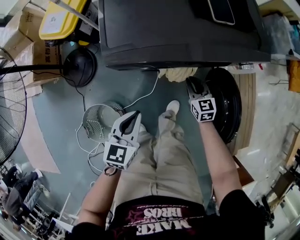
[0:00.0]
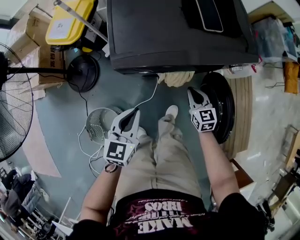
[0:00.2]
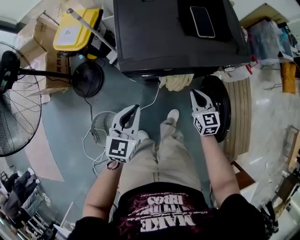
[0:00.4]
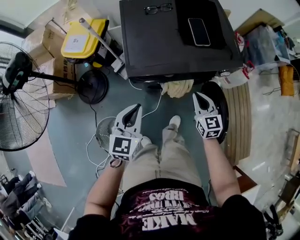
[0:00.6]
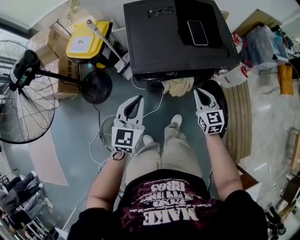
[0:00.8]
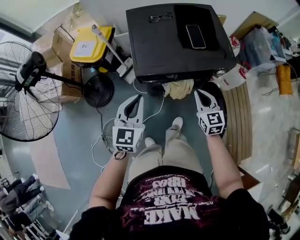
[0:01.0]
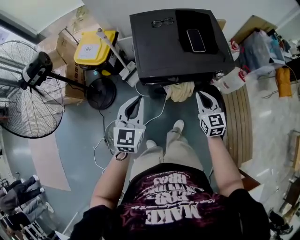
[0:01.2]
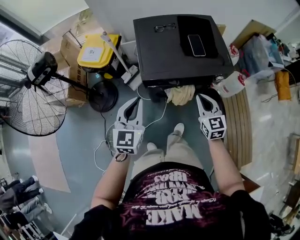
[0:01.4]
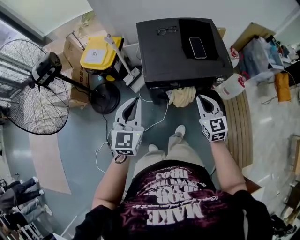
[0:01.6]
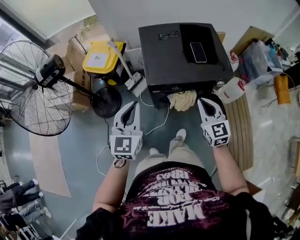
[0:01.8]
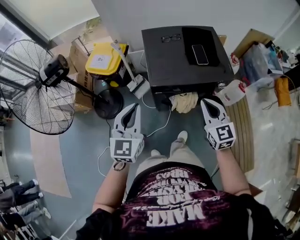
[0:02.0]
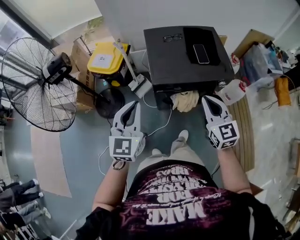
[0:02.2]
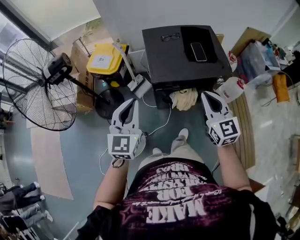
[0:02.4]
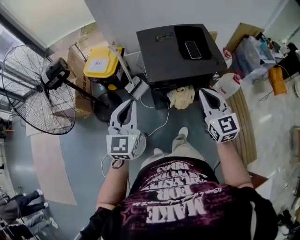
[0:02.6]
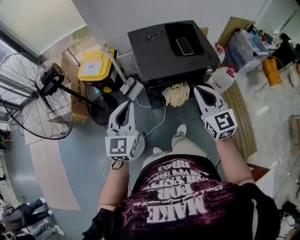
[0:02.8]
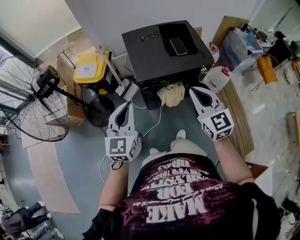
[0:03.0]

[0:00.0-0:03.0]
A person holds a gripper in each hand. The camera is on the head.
0:00.0 to 0:01.6: The grippers both shift upward by approximately 35 cm. The left gripper swivels approximately 30 degrees.
0:01.6 to 0:03.0: The left gripper travels backward and upward by roughly 10 cm, while the right gripper heads upward and backward, covering some 20 cm.

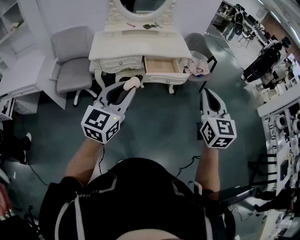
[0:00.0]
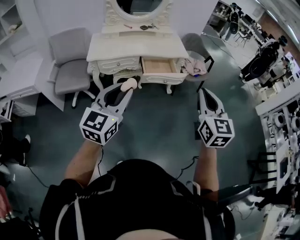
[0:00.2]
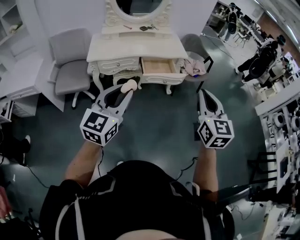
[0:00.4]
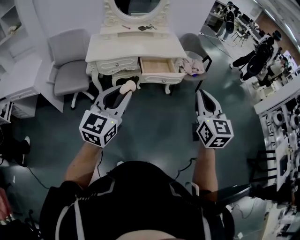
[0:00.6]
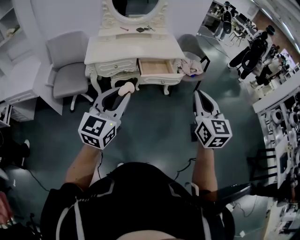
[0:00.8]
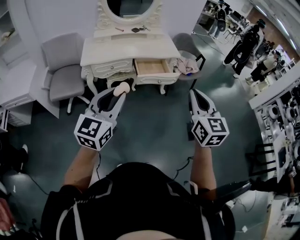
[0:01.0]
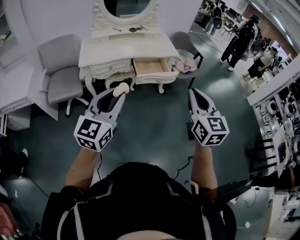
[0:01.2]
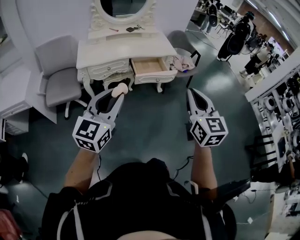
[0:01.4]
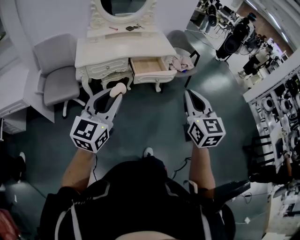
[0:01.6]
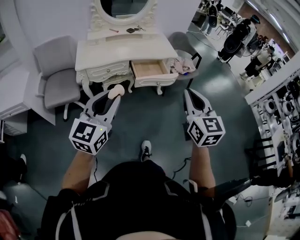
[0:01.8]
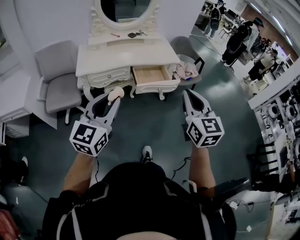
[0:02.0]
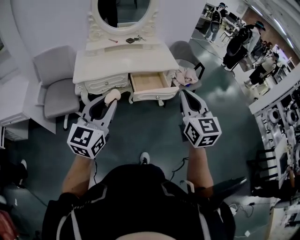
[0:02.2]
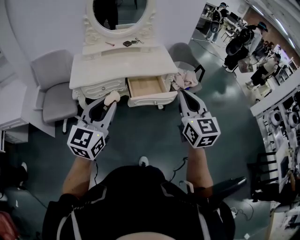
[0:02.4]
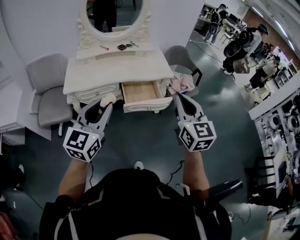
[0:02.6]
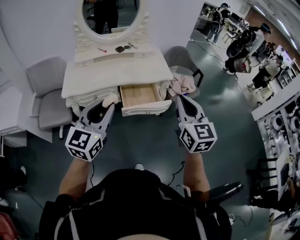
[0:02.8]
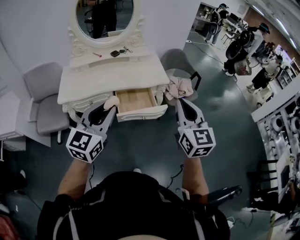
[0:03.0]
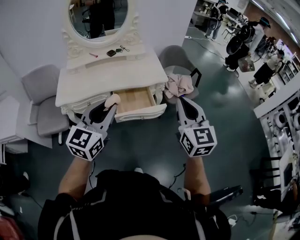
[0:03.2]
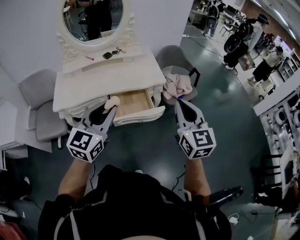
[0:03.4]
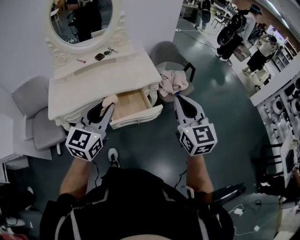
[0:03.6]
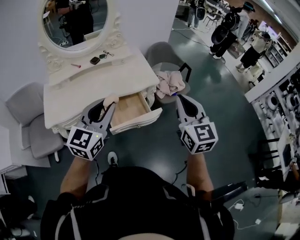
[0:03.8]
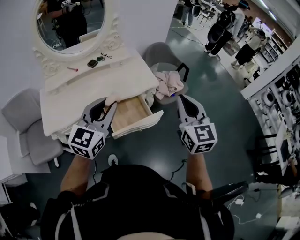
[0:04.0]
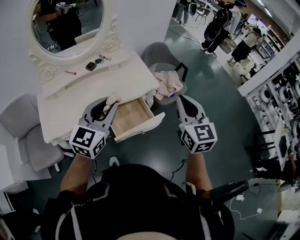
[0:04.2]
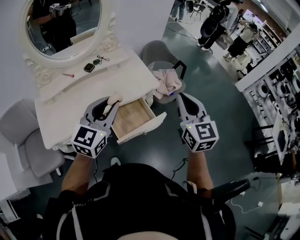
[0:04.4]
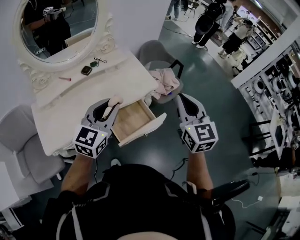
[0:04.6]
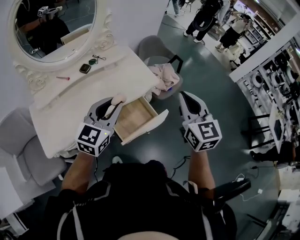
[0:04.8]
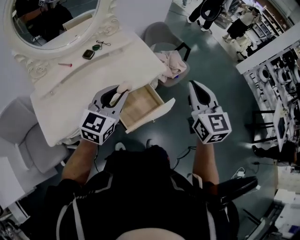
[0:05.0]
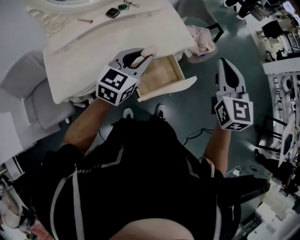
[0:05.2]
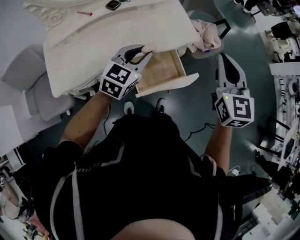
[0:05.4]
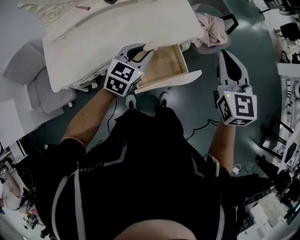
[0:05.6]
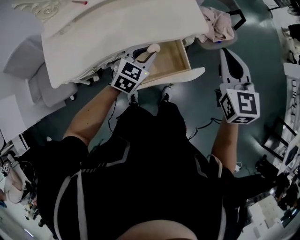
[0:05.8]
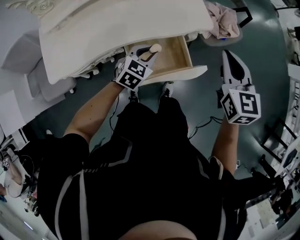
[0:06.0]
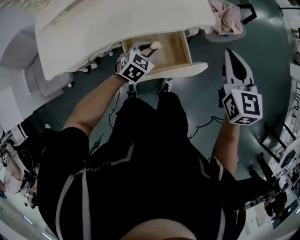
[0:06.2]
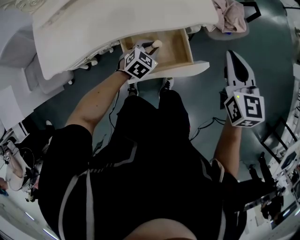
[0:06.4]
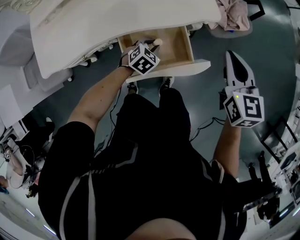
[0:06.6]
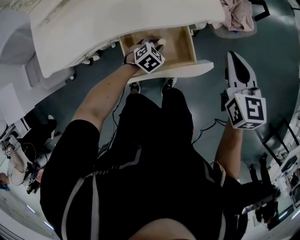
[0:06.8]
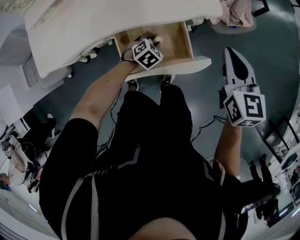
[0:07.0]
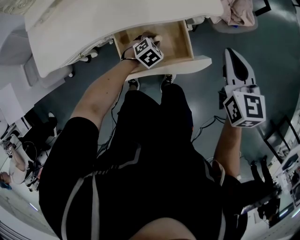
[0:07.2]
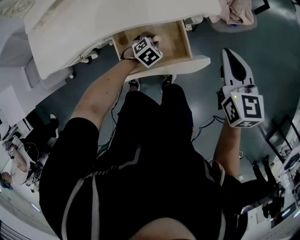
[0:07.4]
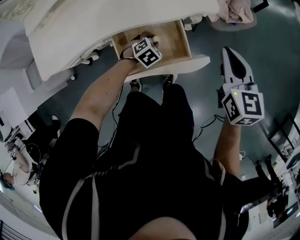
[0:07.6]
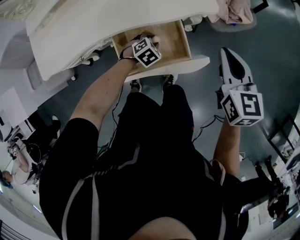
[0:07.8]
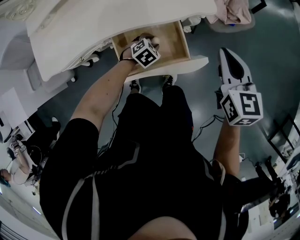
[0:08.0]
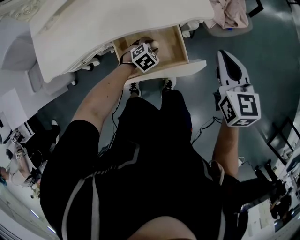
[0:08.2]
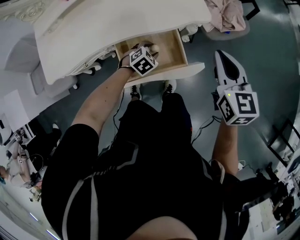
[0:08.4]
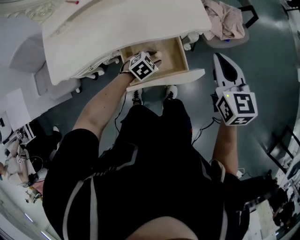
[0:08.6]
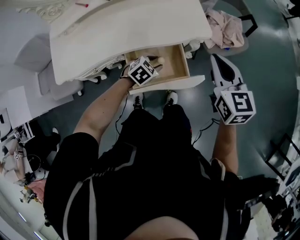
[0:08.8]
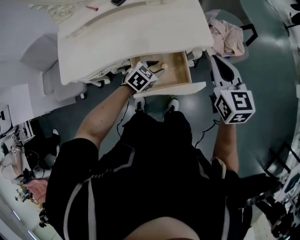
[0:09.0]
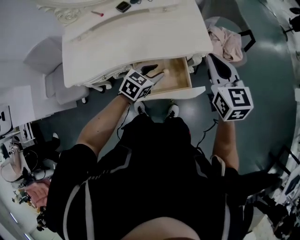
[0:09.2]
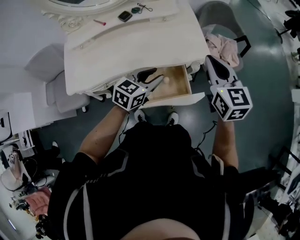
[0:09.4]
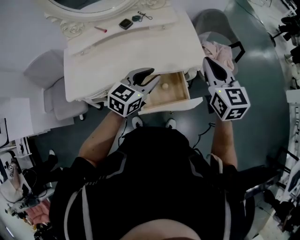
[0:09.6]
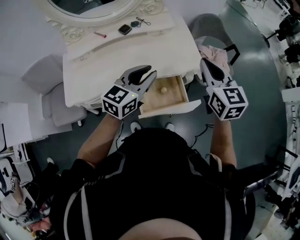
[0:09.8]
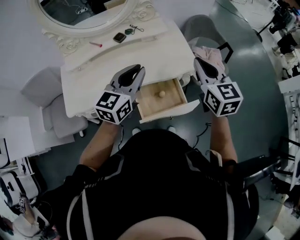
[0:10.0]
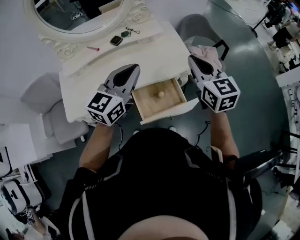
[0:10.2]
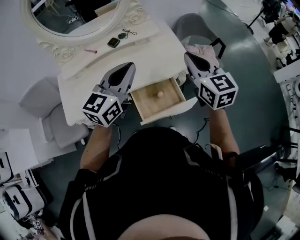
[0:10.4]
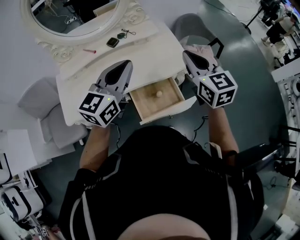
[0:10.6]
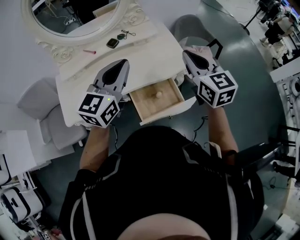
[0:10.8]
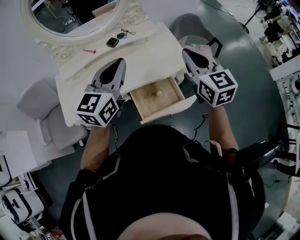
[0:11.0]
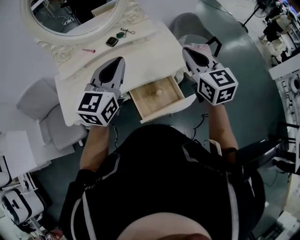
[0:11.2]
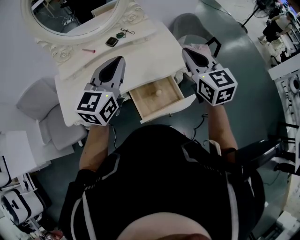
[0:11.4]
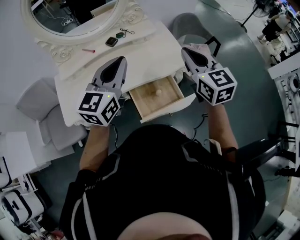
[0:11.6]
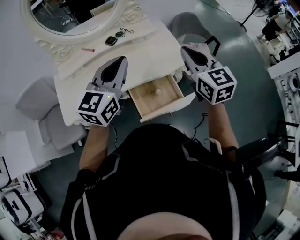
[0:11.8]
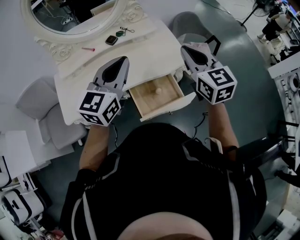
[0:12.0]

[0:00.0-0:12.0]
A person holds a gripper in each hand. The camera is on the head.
0:00.0 to 0:01.6: The grippers both shift to the left by some 5 cm.
0:01.6 to 0:03.0: The grippers both shift forward and to the right by roughly 30 cm.
0:03.0 to 0:04.4: The grippers both shift forward by roughly 20 cm.
0:04.4 to 0:06.0: The left gripper is displaced downward by approximately 30 cm, and angles its fingers downward, by some 40 degrees. Meanwhile the right gripper goes some 20 cm downward and forward, and turns by about 20 degrees.
0:06.0 to 0:07.6: The left gripper goes some 20 cm downward, and rotates roughly 30 degrees, while the right gripper heads downward, covering approximately 10 cm.
0:07.6 to 0:09.0: The left gripper goes roughly 15 cm upward, and turns by approximately 20 degrees; the right gripper moves upward, approximately 10 cm.
0:09.0 to 0:10.4: The right gripper goes approximately 15 cm upward and to the left, while the left gripper travels upward by about 35 cm, points its fingers approximately 50 degrees further upward, and closes up.
0:10.4 to 0:12.0: The grippers make only small movements.

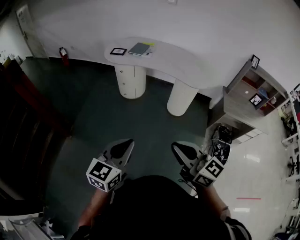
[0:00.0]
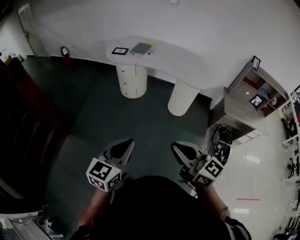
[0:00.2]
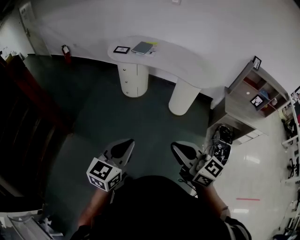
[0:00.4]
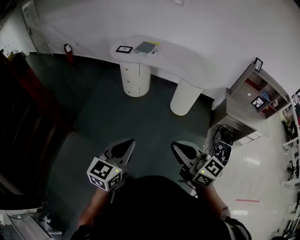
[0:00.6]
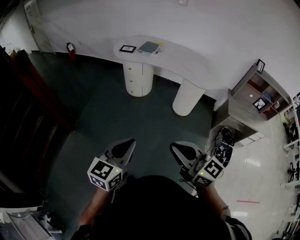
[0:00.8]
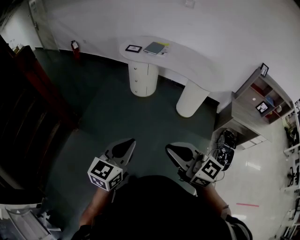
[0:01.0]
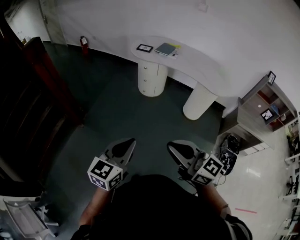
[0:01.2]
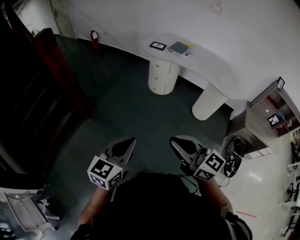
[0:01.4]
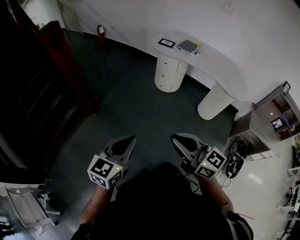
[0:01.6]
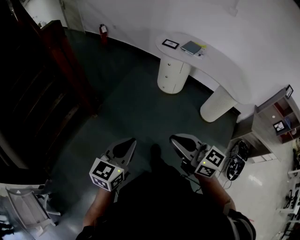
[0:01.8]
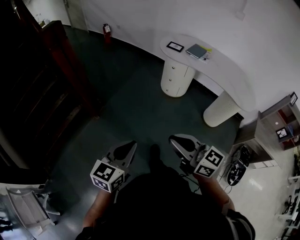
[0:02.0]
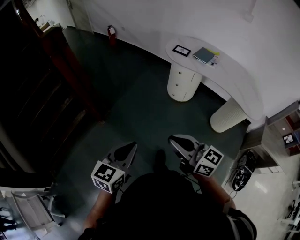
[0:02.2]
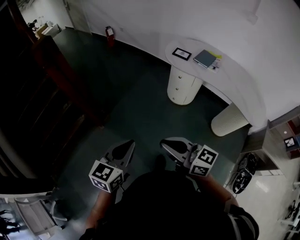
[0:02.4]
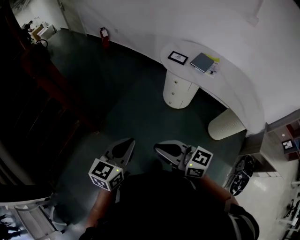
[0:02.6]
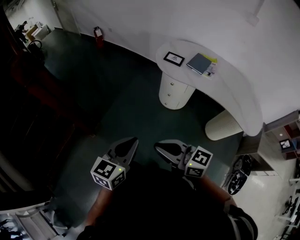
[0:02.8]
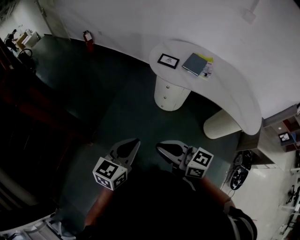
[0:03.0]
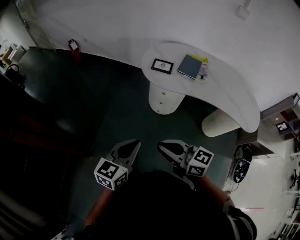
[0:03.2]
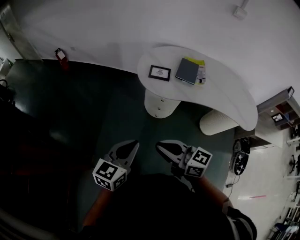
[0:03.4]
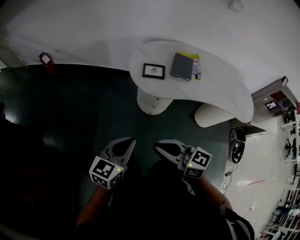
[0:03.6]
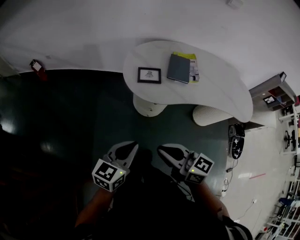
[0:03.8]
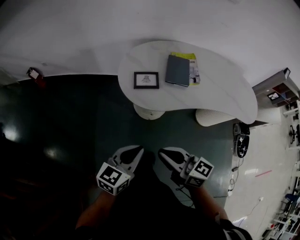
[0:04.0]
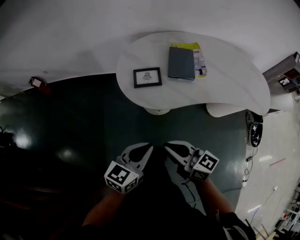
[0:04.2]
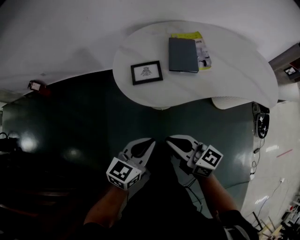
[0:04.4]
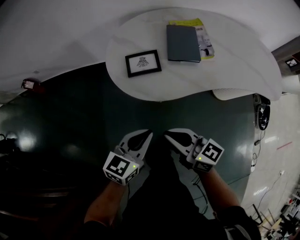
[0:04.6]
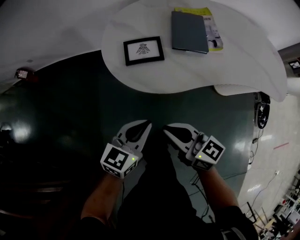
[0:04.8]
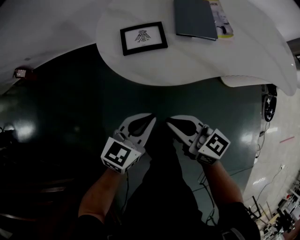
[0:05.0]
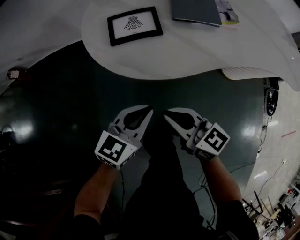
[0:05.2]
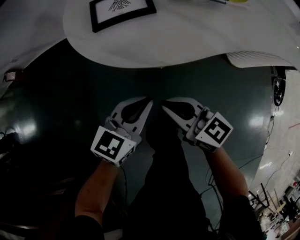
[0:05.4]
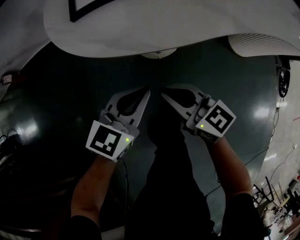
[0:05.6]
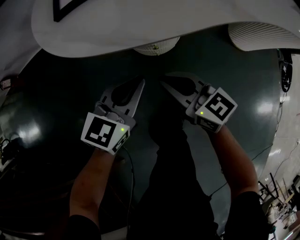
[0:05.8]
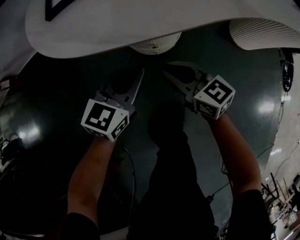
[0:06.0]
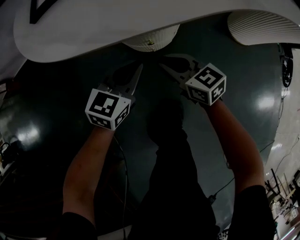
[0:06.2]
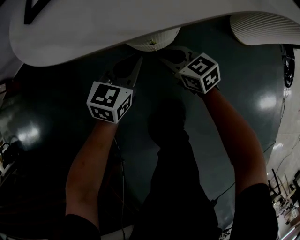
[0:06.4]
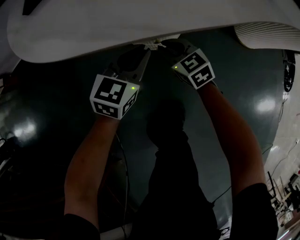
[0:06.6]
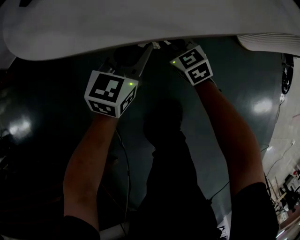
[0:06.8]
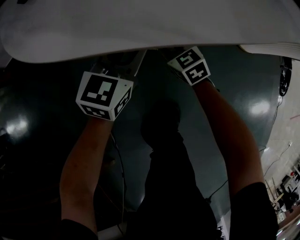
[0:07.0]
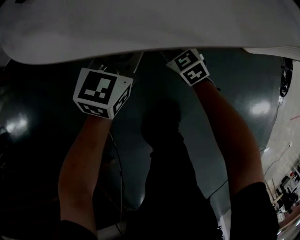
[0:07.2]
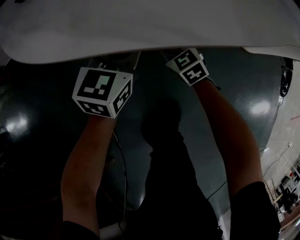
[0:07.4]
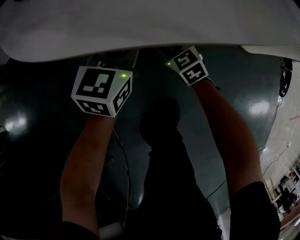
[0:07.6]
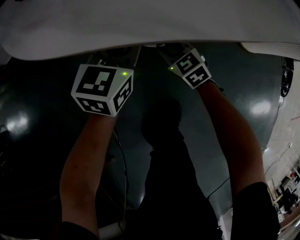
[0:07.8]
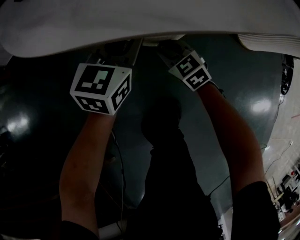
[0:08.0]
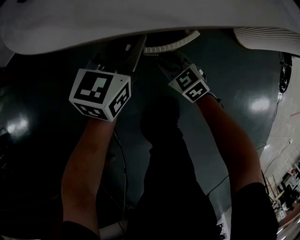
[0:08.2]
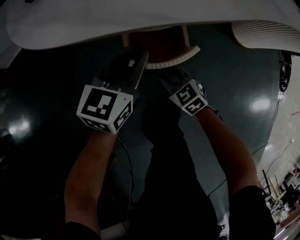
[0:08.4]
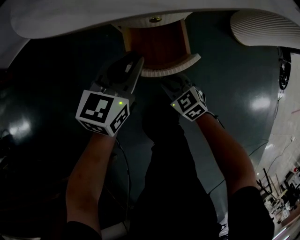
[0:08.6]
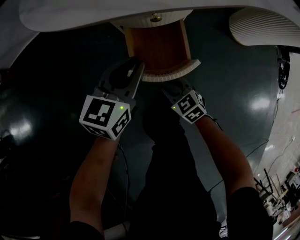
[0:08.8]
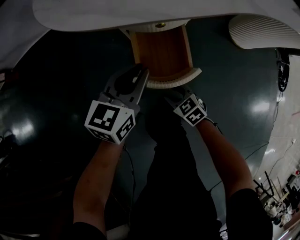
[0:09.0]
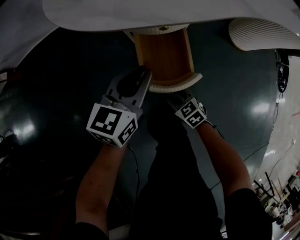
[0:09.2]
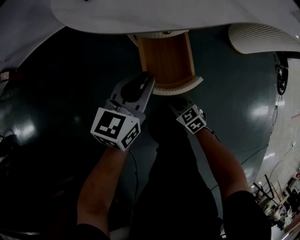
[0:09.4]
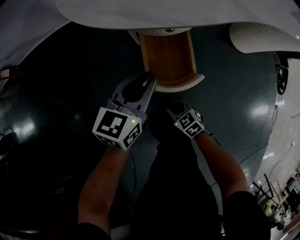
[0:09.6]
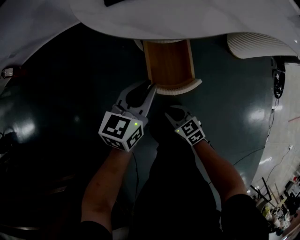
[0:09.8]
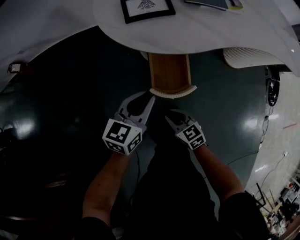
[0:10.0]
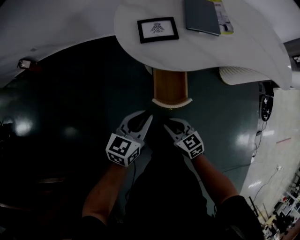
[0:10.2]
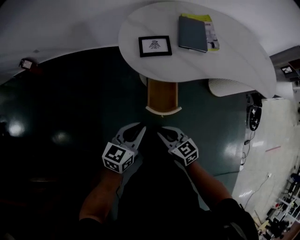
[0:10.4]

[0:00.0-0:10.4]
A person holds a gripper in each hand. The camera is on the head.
0:00.0 to 0:01.4: Both grippers travel together to the left, roughly 20 cm.
0:01.4 to 0:03.0: The pair of grippers is taken forward, some 40 cm.
0:03.0 to 0:04.4: The left gripper shifts by roughly 40 cm, and turns by approximately 40 degrees, while the right gripper changes place by approximately 40 cm, and rotates approximately 40 degrees.
0:04.4 to 0:06.0: Both grippers move downward, approximately 35 cm.
0:06.0 to 0:07.4: The left gripper is displaced forward by approximately 10 cm, while the right gripper moves downward and forward, about 20 cm, and turns by approximately 30 degrees.
0:07.4 to 0:09.0: The right gripper goes some 20 cm backward; the left gripper travels backward and upward by some 15 cm.
0:09.0 to 0:10.4: The right gripper heads upward, covering roughly 40 cm. The left gripper heads upward and backward, covering approximately 30 cm.
